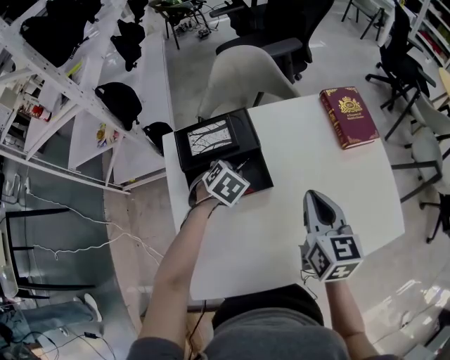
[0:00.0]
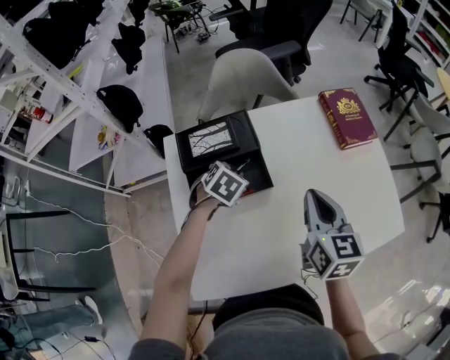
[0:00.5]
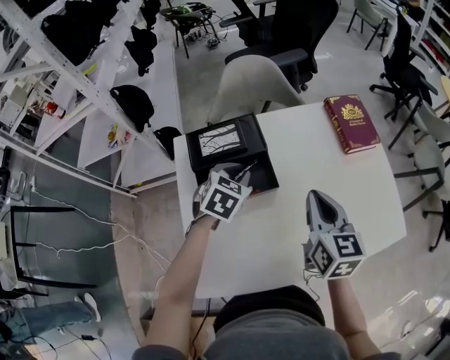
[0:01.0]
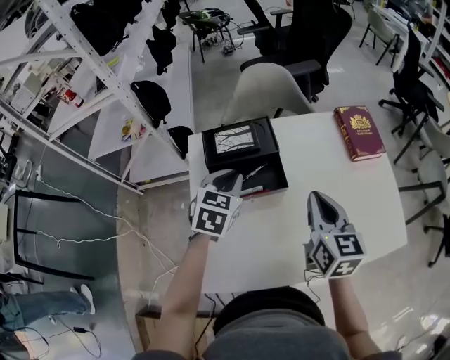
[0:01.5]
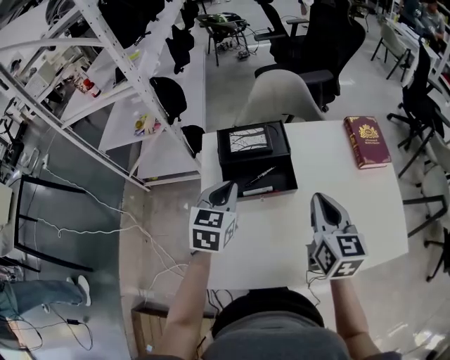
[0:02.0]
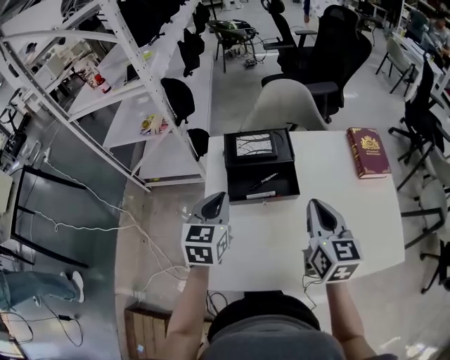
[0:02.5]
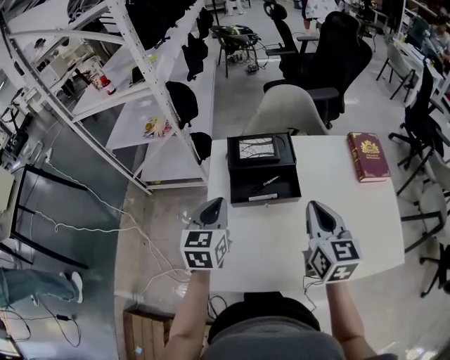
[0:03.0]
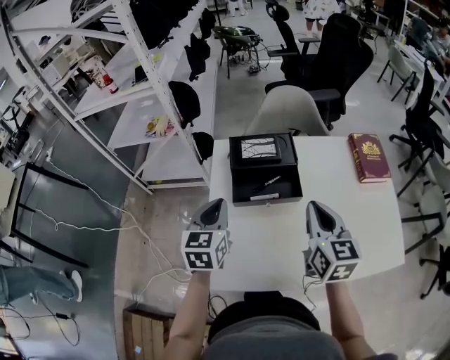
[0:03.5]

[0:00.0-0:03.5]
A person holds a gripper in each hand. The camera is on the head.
0:00.0 to 0:02.0: The right gripper shifts by approximately 5 cm, while the left gripper goes about 20 cm upward, backward and to the left, and tilts its fingers some 40 degrees upward.
0:02.0 to 0:03.5: The left gripper goes some 5 cm to the left.

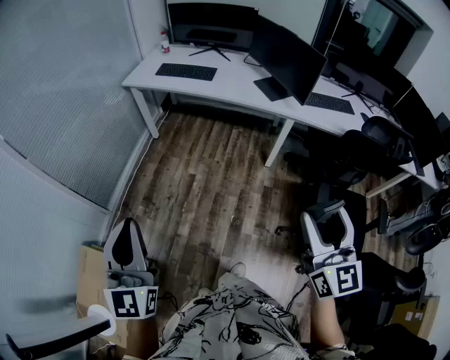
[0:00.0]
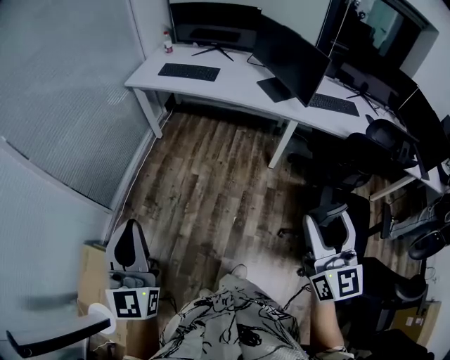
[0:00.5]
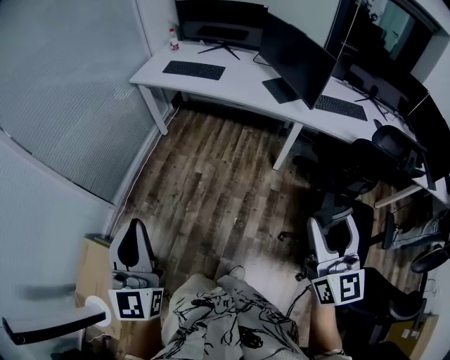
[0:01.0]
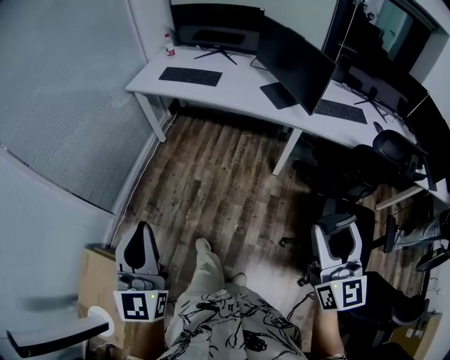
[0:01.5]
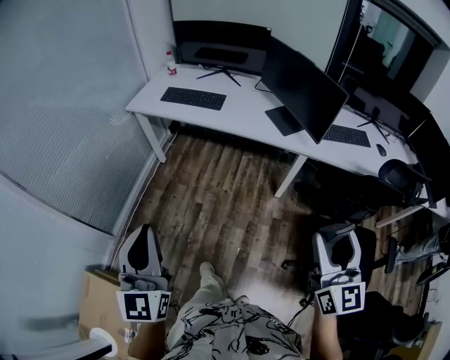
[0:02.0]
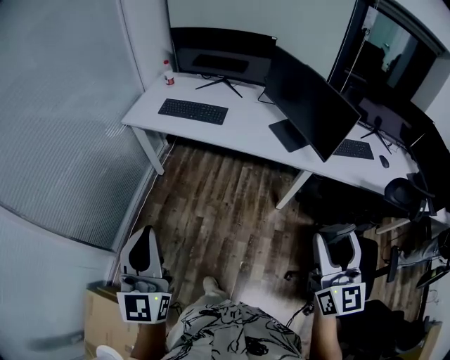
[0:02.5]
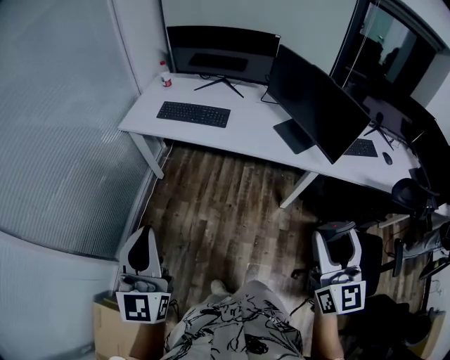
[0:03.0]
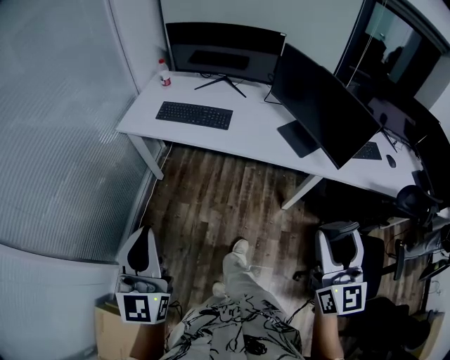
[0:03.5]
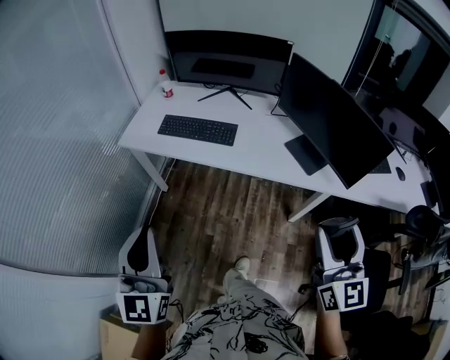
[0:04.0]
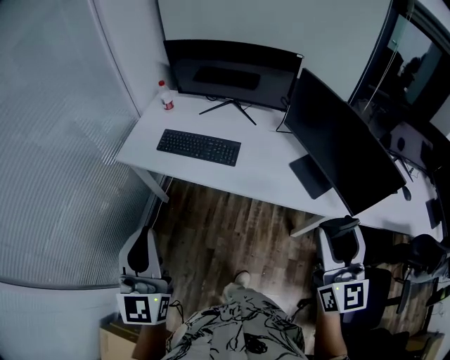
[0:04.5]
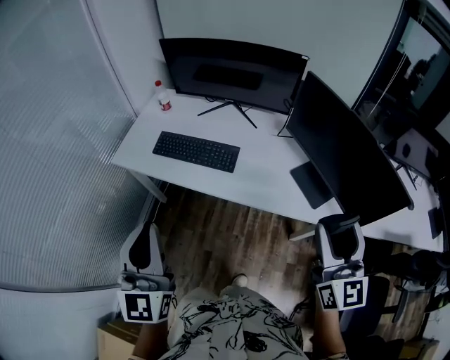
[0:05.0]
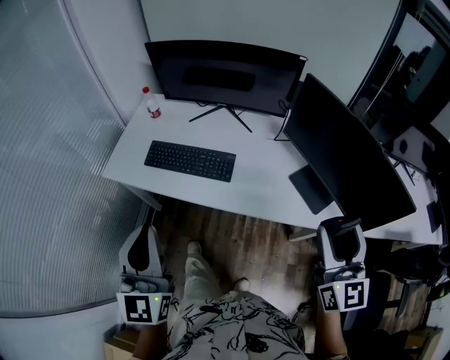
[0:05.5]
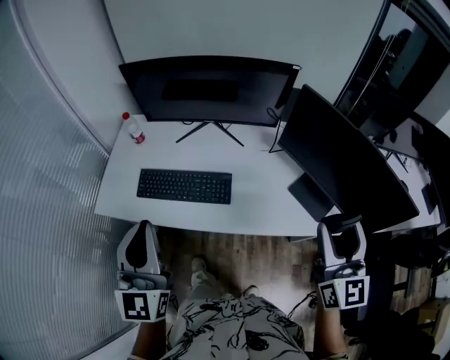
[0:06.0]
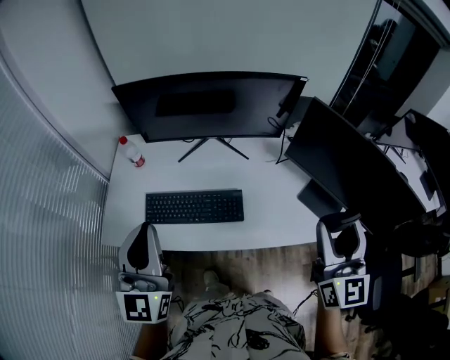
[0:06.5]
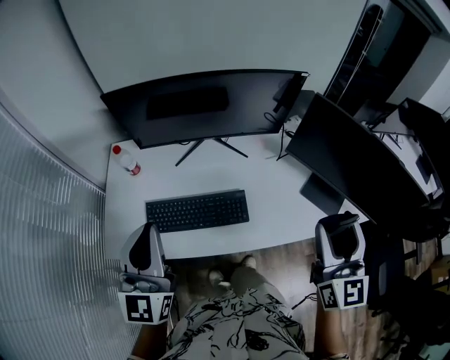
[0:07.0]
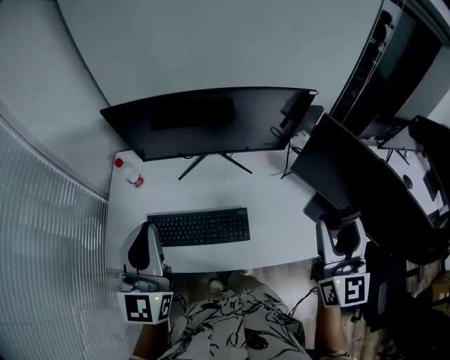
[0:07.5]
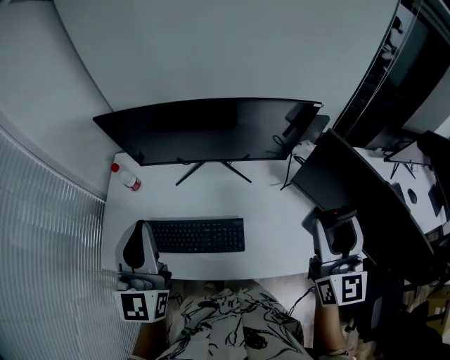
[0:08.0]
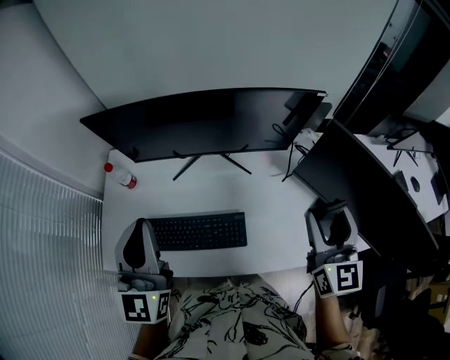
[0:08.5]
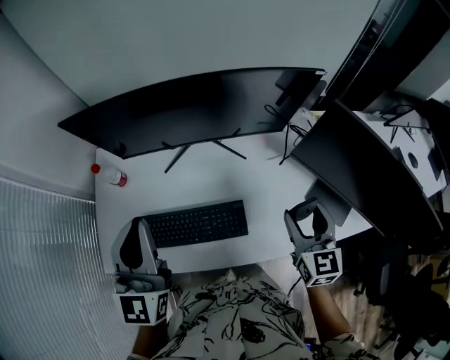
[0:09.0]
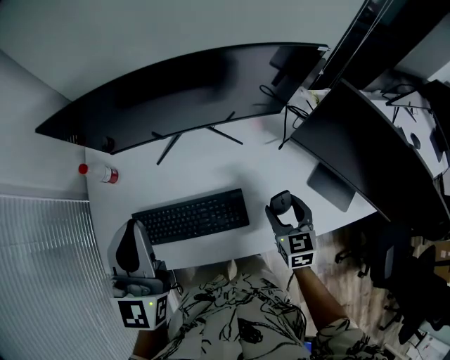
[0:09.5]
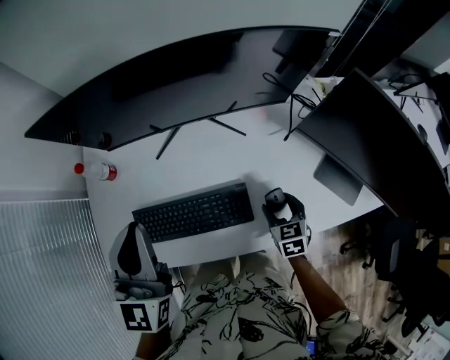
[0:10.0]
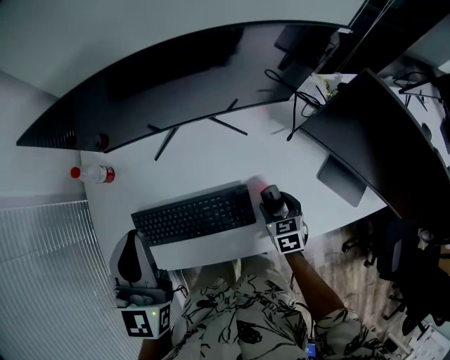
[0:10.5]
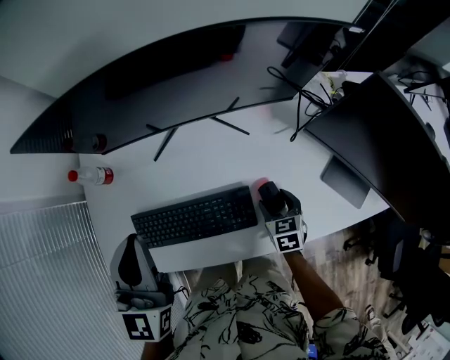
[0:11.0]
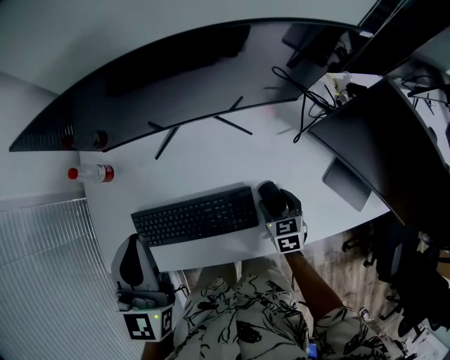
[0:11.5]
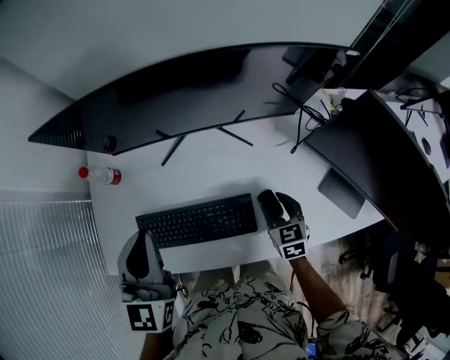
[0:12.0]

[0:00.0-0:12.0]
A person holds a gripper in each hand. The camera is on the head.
0:00.0 to 0:02.0: Both grippers move forward, approximately 15 cm.
0:02.0 to 0:04.0: Both grippers travel together forward, about 30 cm.
0:04.0 to 0:06.0: Both grippers move forward, approximately 35 cm.
0:06.0 to 0:08.0: The two grippers go some 20 cm forward.
0:08.0 to 0:10.0: The right gripper is displaced downward by roughly 40 cm, and tips its fingers downward by about 50 degrees. Meanwhile the left gripper moves downward and forward, roughly 10 cm.
0:10.0 to 0:12.0: The right gripper is displaced forward by about 5 cm.

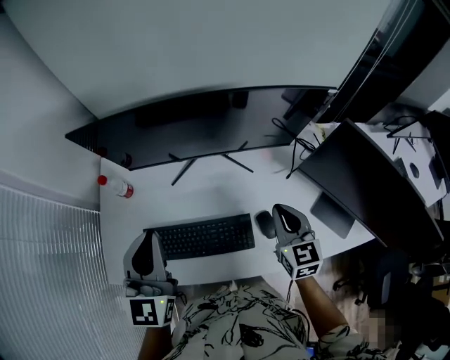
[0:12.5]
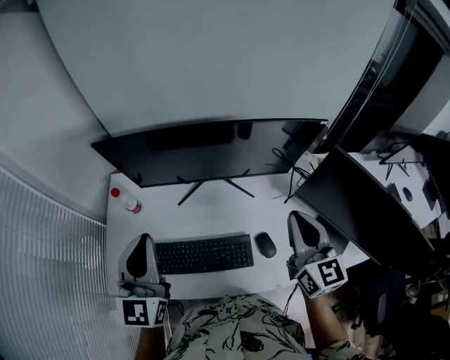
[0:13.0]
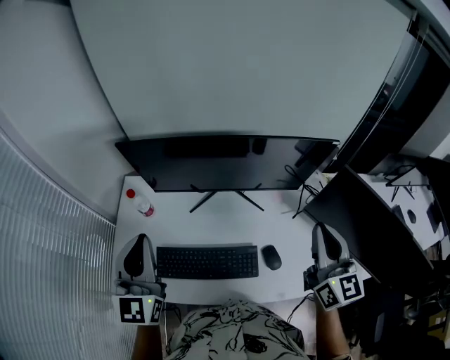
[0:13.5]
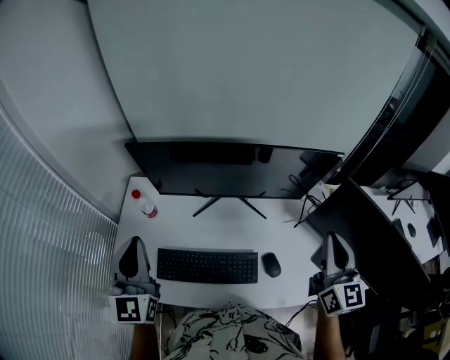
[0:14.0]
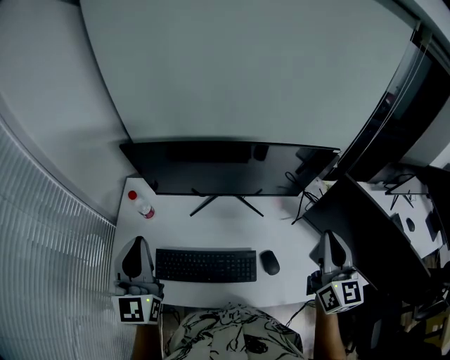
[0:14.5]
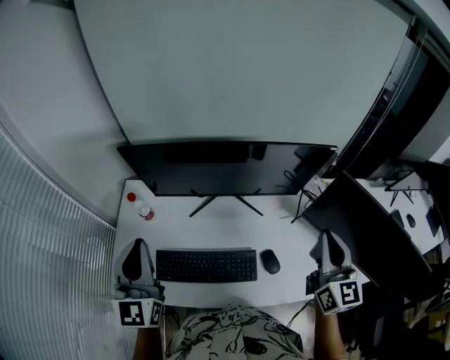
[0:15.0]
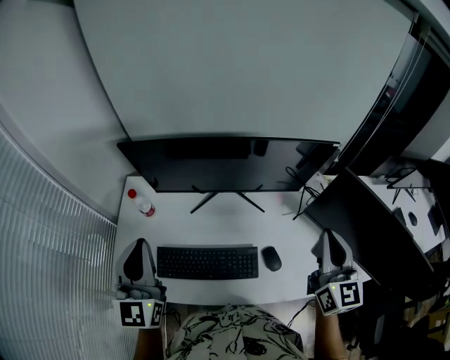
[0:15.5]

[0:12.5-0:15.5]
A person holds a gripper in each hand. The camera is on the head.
0:12.5 to 0:14.0: The right gripper moves upward, some 20 cm, and swivels roughly 20 degrees; the left gripper heads to the left and upward, covering approximately 10 cm.
0:14.0 to 0:15.5: The grippers stay close to where they were, moving slightly.

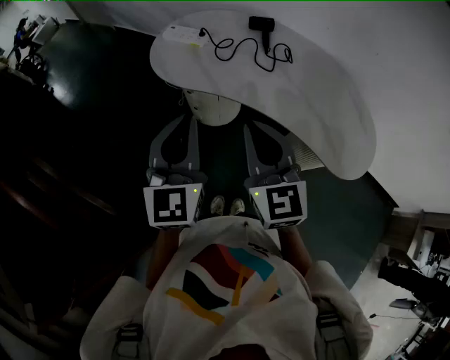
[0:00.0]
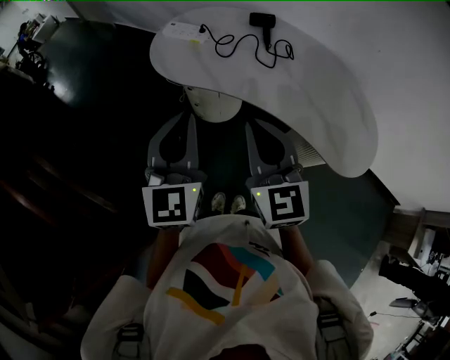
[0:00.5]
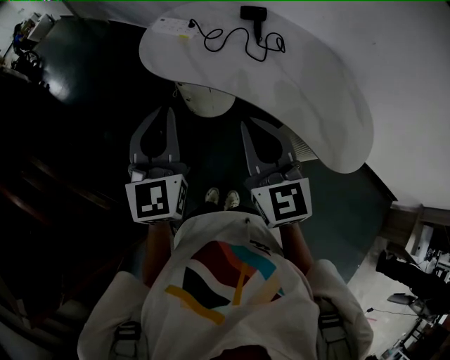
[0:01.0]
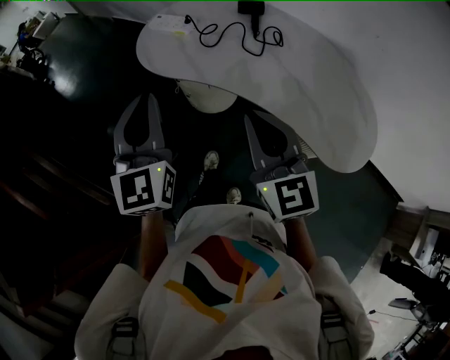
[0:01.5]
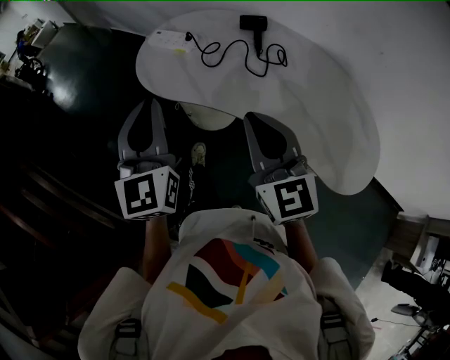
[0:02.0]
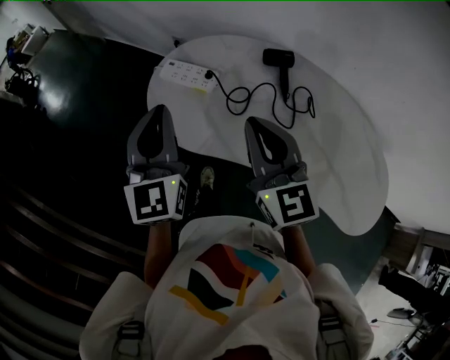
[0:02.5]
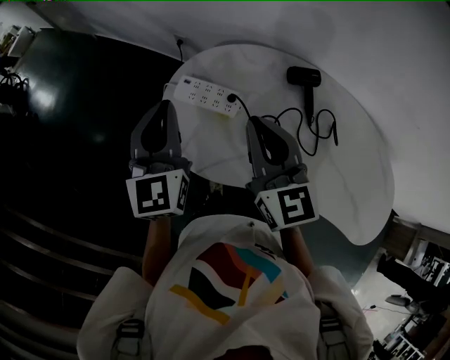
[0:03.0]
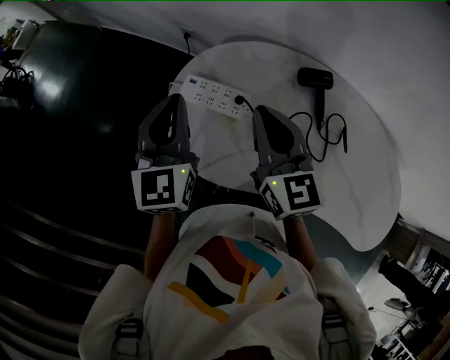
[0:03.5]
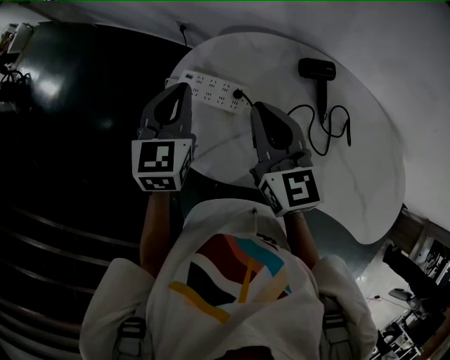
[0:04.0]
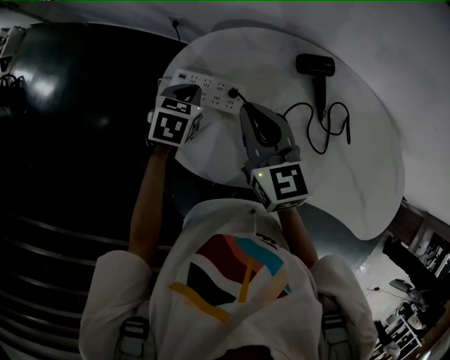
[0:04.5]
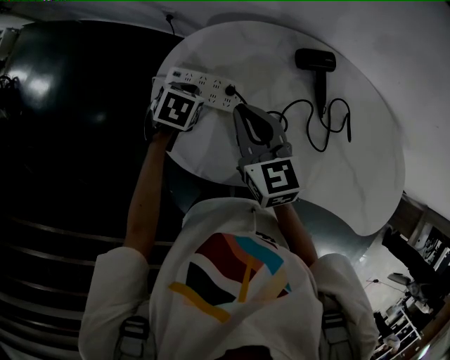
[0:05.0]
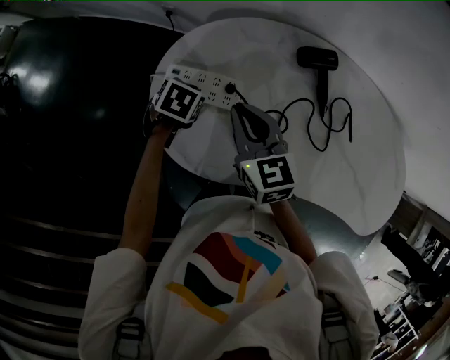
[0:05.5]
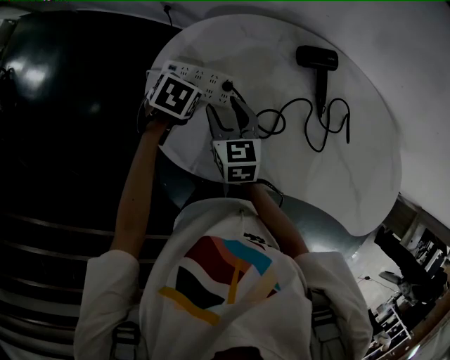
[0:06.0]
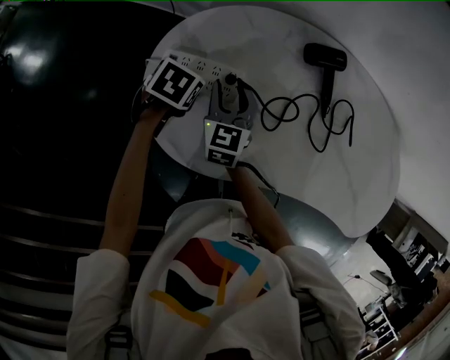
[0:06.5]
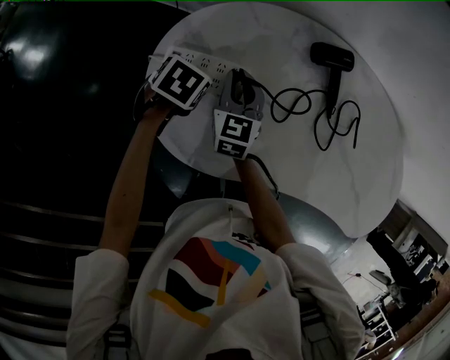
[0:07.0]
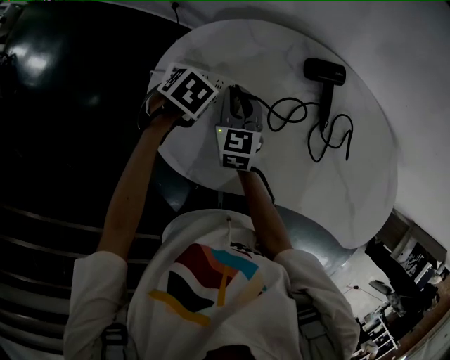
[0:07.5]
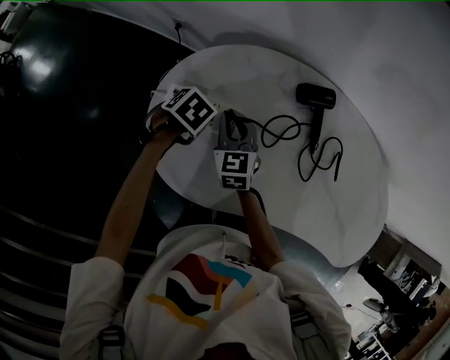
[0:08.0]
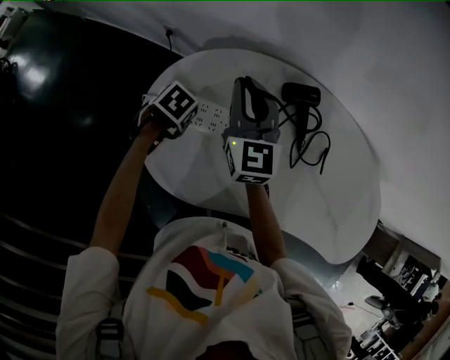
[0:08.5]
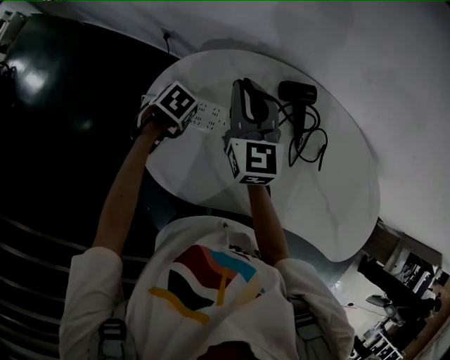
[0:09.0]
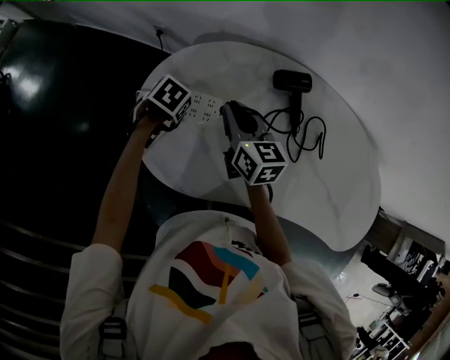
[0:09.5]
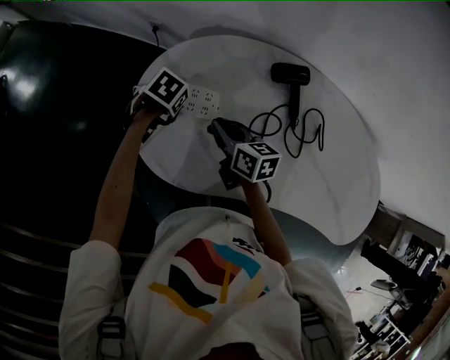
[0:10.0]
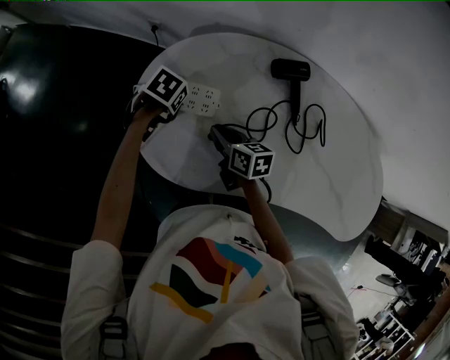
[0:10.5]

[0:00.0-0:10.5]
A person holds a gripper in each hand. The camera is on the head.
0:00.0 to 0:02.0: The left gripper heads forward, covering approximately 10 cm, while the right gripper is displaced forward and to the right by about 10 cm.
0:02.0 to 0:04.0: Both grippers are carried forward, some 40 cm. The left gripper swivels roughly 30 degrees.
0:04.0 to 0:06.5: Both grippers travel together downward, some 20 cm. The left gripper tilts its fingers about 50 degrees downward. Meanwhile the right gripper rotates some 30 degrees, and opens up.
0:06.5 to 0:08.5: The right gripper goes some 15 cm upward, changes its angle by some 20 degrees, and closes its fingers.
0:08.5 to 0:10.5: The right gripper shifts some 20 cm downward, and changes its angle by roughly 50 degrees.
